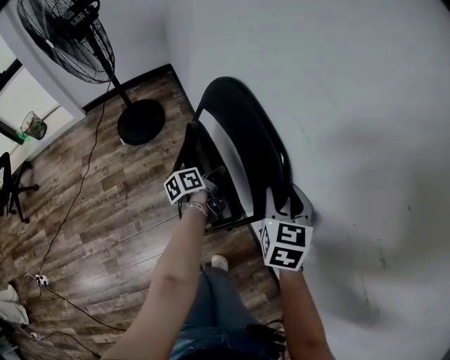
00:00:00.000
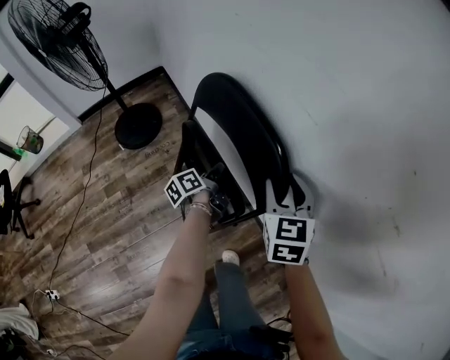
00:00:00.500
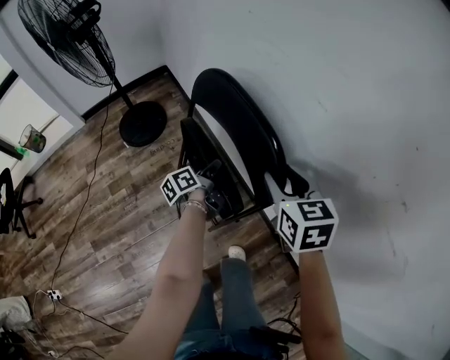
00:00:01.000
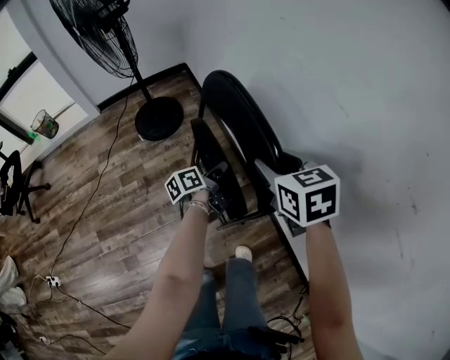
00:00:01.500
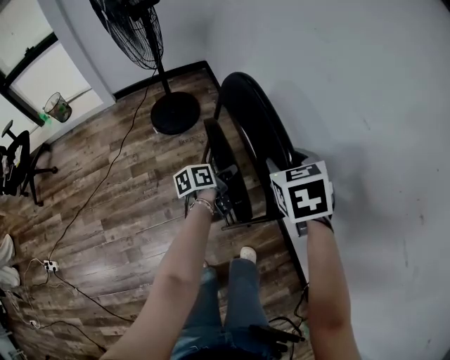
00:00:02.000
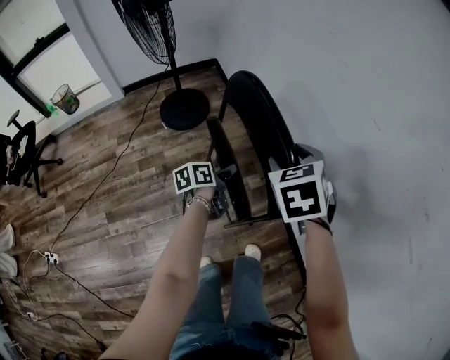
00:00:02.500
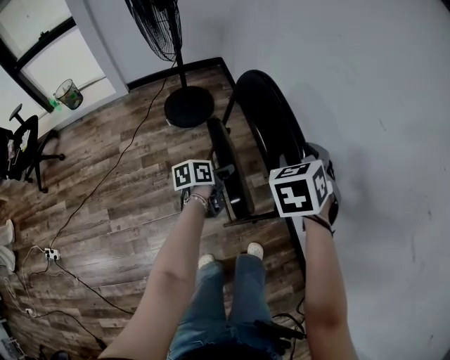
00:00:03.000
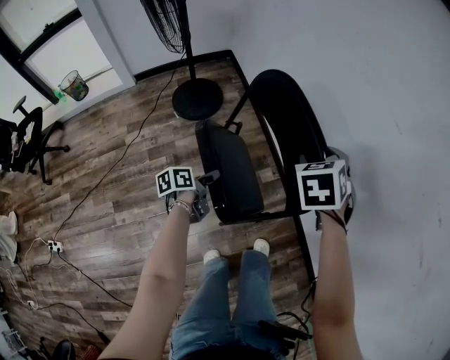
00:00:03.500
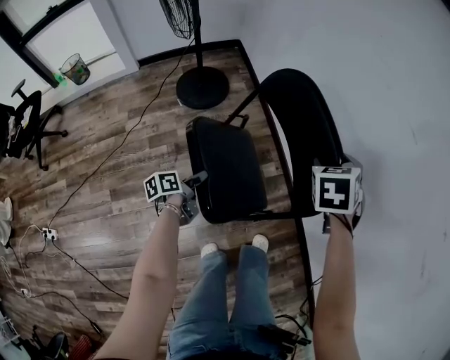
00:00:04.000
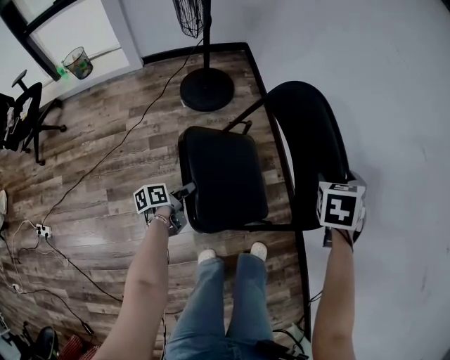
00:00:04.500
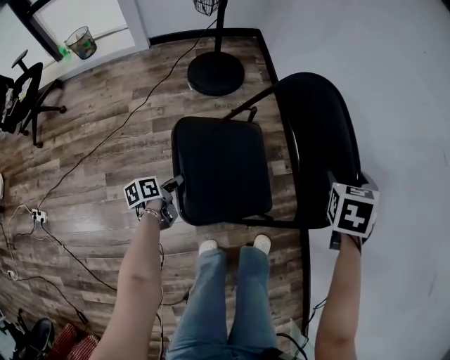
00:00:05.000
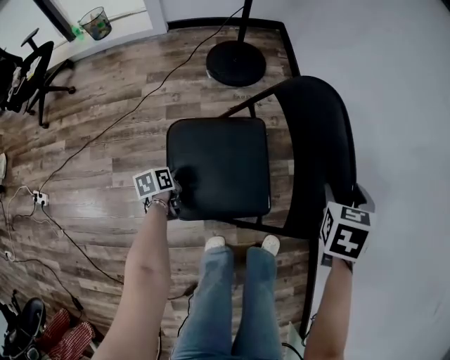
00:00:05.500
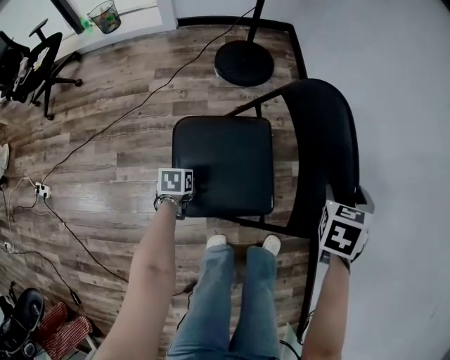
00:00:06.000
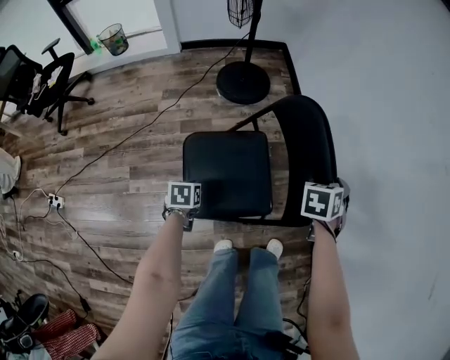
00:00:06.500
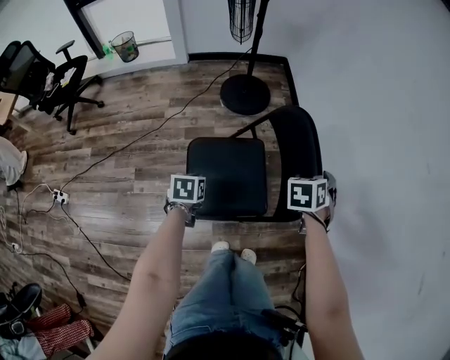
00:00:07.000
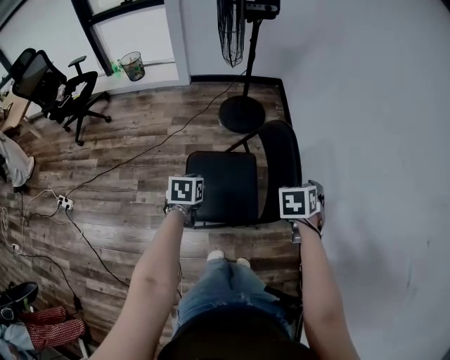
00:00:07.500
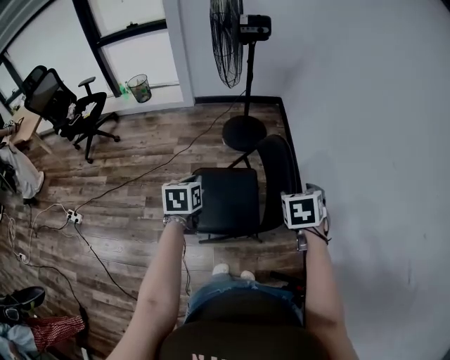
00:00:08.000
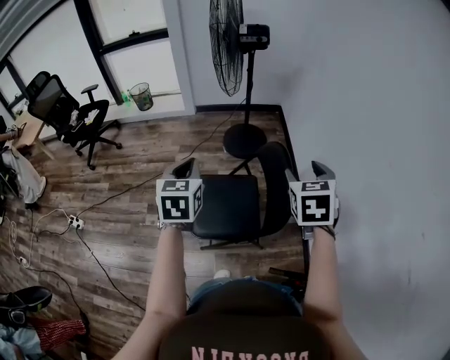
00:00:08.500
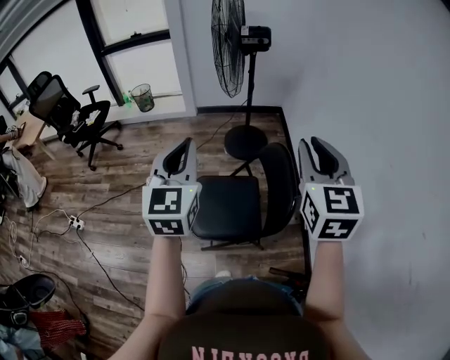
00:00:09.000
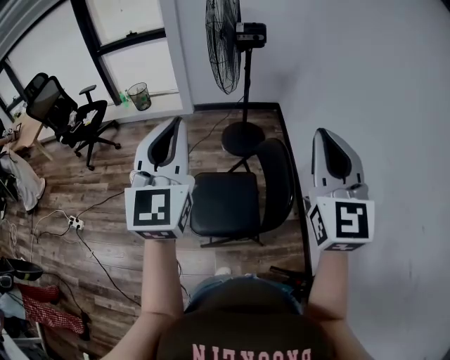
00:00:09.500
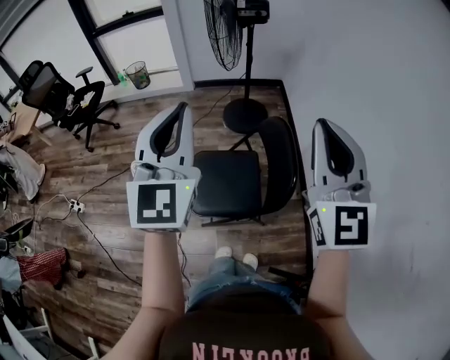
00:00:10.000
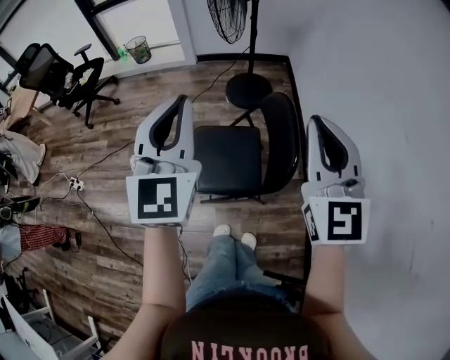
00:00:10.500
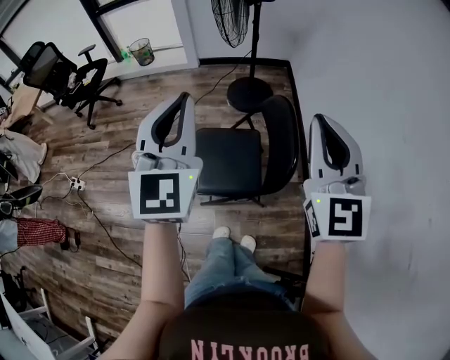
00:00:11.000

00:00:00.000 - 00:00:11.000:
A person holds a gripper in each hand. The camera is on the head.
00:00:00.000 - 00:00:02.000: The right gripper is displaced to the left by approximately 20 cm, and rotates roughly 30 degrees. The left gripper shifts approximately 20 cm to the left and backward.
00:00:02.000 - 00:00:03.500: The left gripper is displaced to the left and backward by some 20 cm.
00:00:03.500 - 00:00:05.500: The right gripper travels downward, backward and to the left by about 15 cm; the left gripper goes approximately 35 cm downward, to the left and backward, and changes its angle by some 30 degrees.
00:00:05.500 - 00:00:07.500: The left gripper travels upward by approximately 30 cm, and swivels approximately 30 degrees; the right gripper goes about 10 cm upward.
00:00:07.500 - 00:00:09.000: Both grippers travel together upward, about 35 cm. The left gripper points its fingers roughly 50 degrees further upward, while the right gripper angles its fingers upward, by some 50 degrees, and closes its fingers.
00:00:09.000 - 00:00:11.000: The right gripper ends up approximately 5 cm from where it was. Meanwhile the left gripper moves roughly 5 cm.

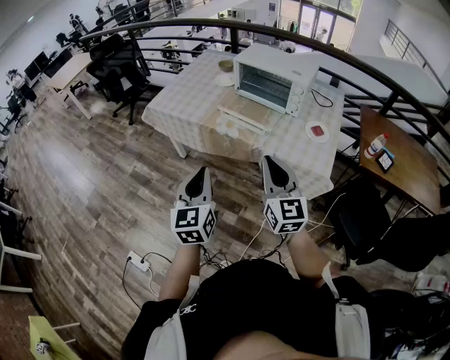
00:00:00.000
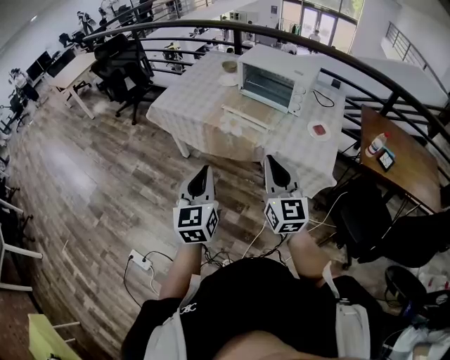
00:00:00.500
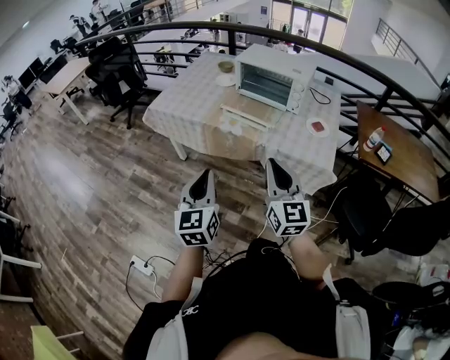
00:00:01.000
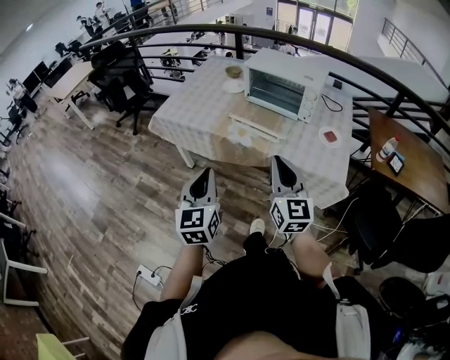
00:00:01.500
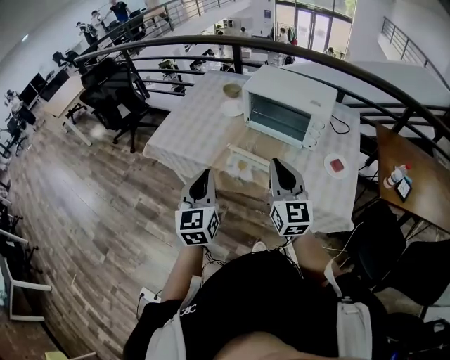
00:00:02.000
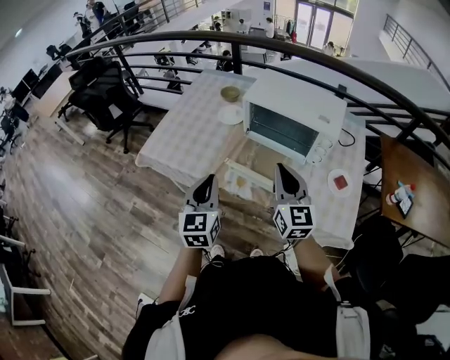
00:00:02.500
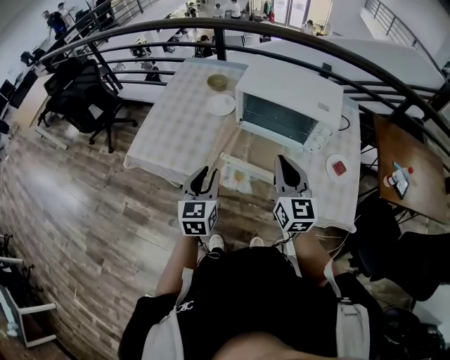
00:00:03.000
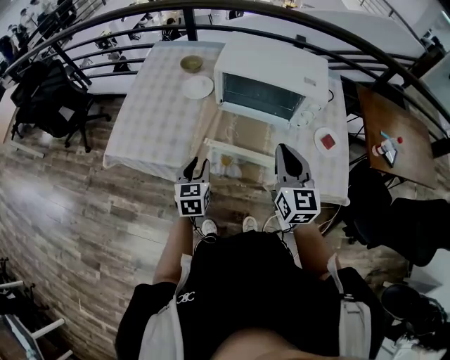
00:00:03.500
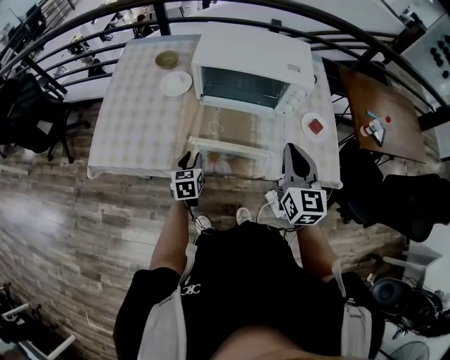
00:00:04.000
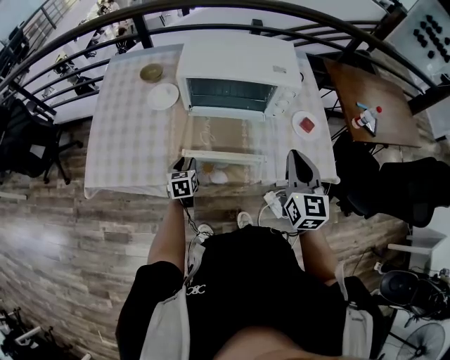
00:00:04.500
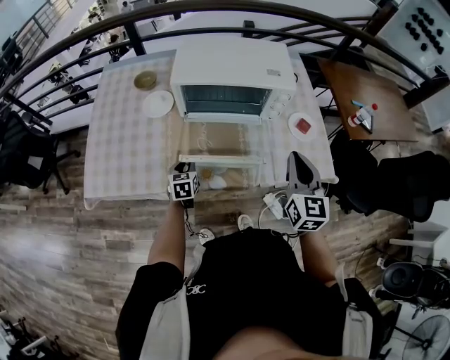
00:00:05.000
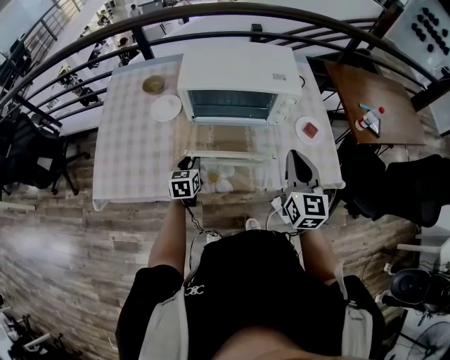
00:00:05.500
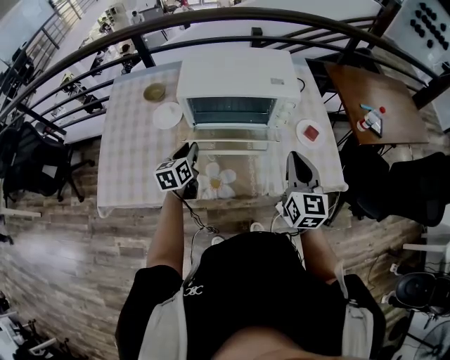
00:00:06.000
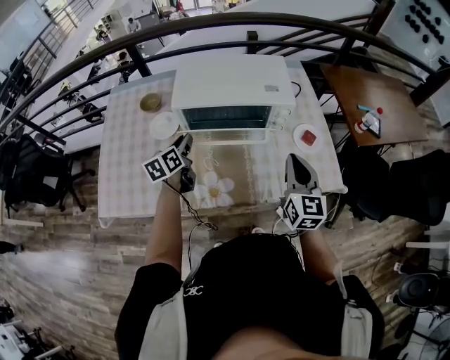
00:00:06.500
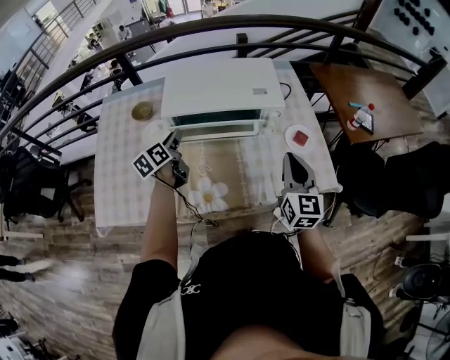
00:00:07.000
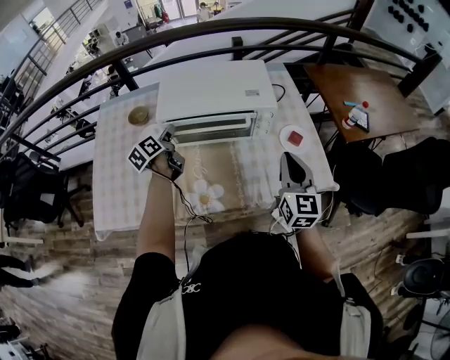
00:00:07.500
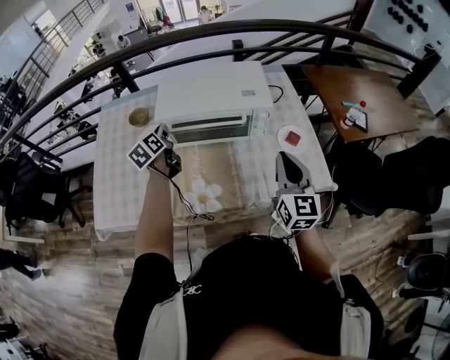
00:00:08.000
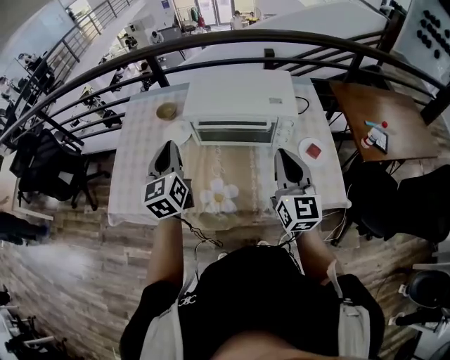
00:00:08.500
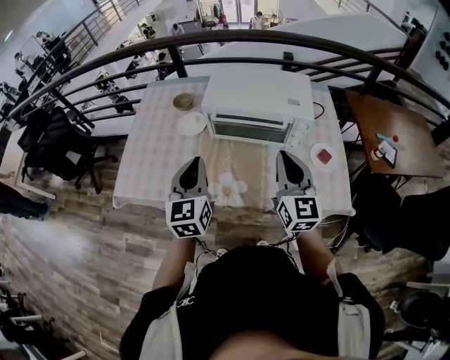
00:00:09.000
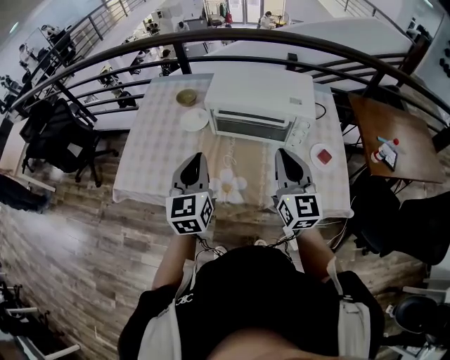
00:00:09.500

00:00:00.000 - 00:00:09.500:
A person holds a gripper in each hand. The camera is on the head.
00:00:00.000 - 00:00:02.000: The two grippers go roughly 25 cm forward.
00:00:02.000 - 00:00:04.000: The right gripper is displaced forward and downward by some 15 cm, and changes its angle by some 30 degrees; the left gripper heads downward and forward, covering approximately 40 cm, points its fingers some 30 degrees further downward, and opens its fingers.
00:00:04.000 - 00:00:05.500: The left gripper goes approximately 10 cm forward.
00:00:05.500 - 00:00:07.500: The right gripper ends up about 5 cm from where it was. The left gripper shifts approximately 20 cm forward and upward, and changes its angle by some 40 degrees.
00:00:07.500 - 00:00:09.500: The right gripper moves to the left and upward, some 15 cm, and swivels about 20 degrees. The left gripper travels backward and upward by some 30 cm, rotates around the line of its fingers by approximately 40 degrees, clockwise from behind, and closes.

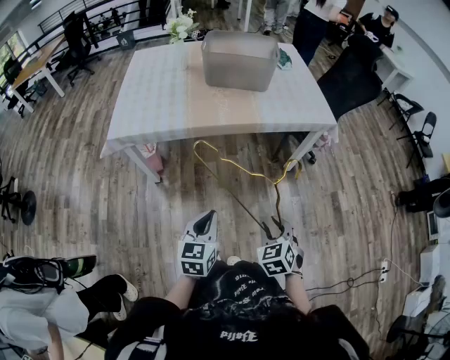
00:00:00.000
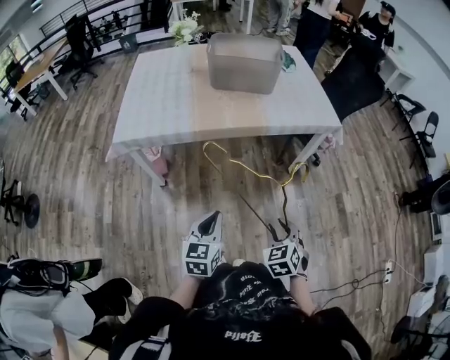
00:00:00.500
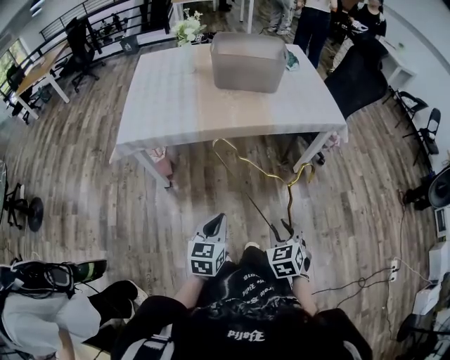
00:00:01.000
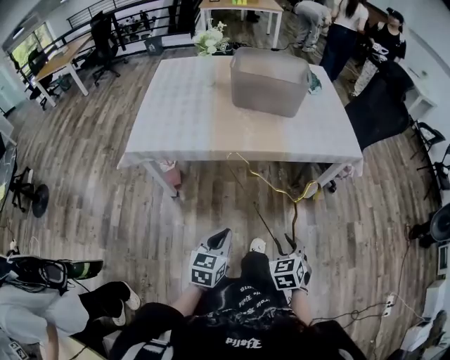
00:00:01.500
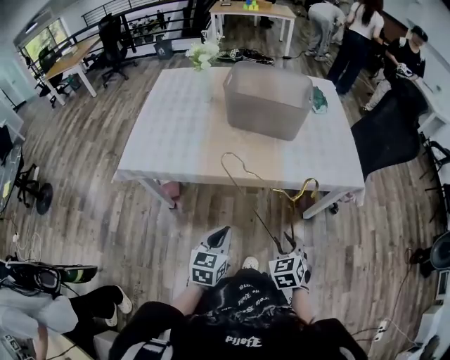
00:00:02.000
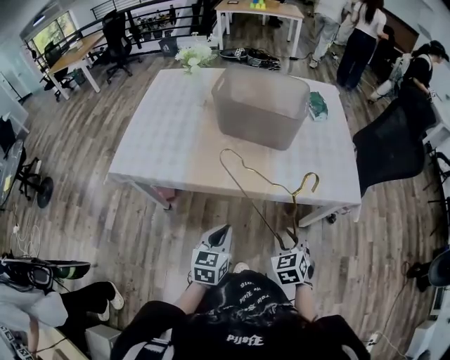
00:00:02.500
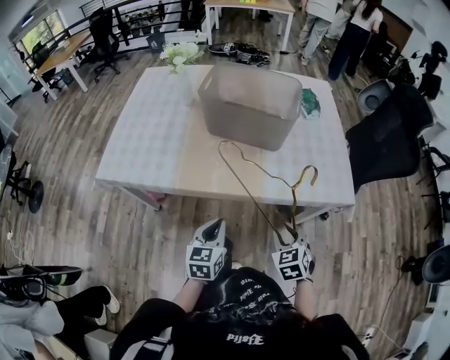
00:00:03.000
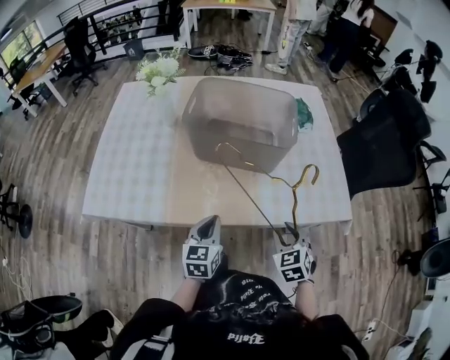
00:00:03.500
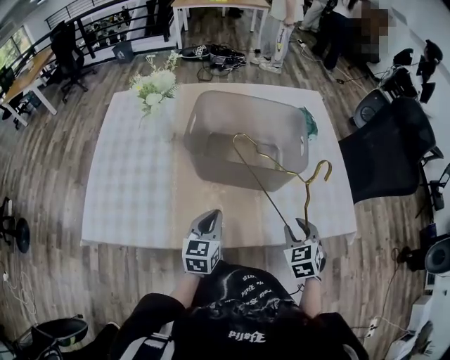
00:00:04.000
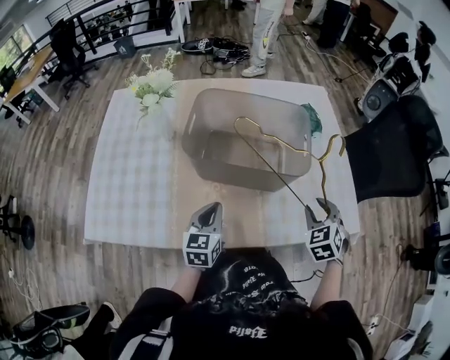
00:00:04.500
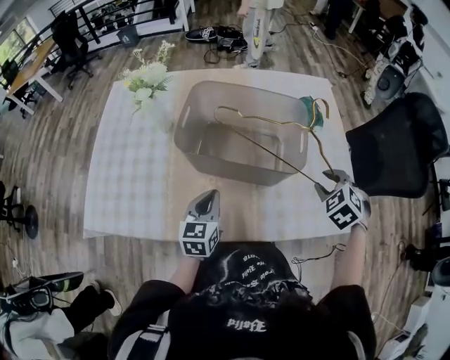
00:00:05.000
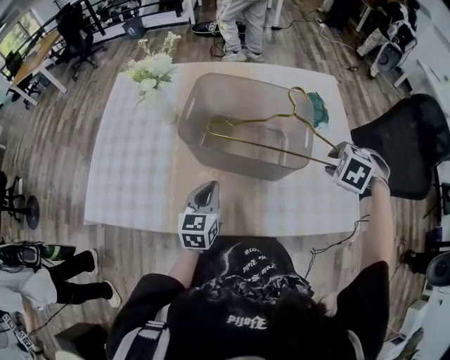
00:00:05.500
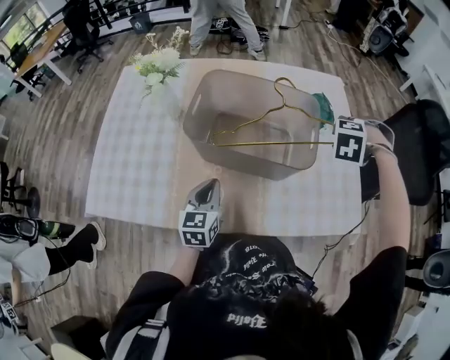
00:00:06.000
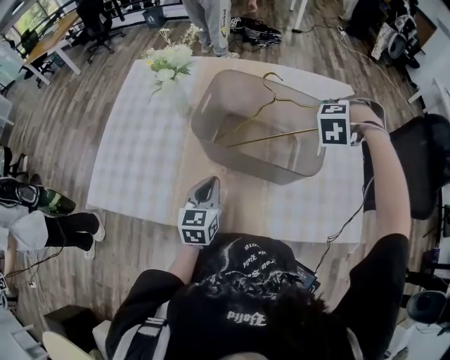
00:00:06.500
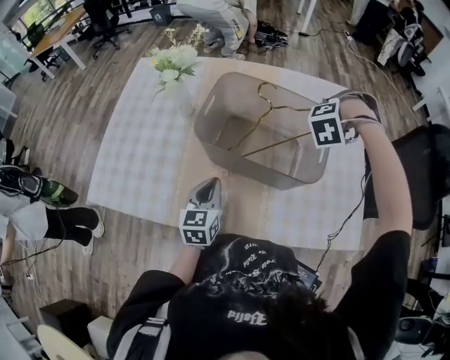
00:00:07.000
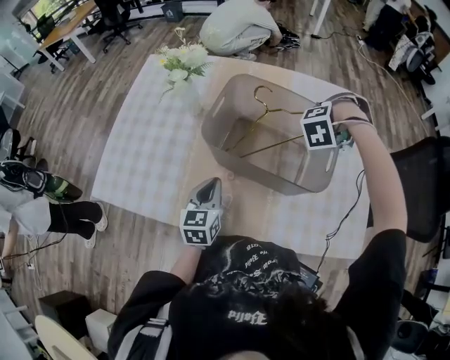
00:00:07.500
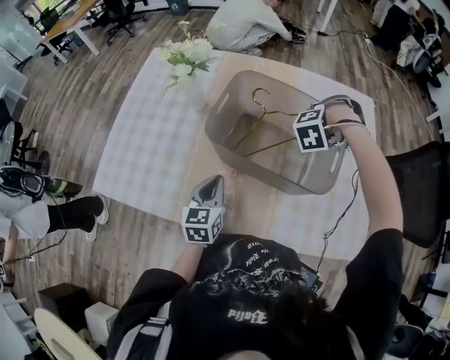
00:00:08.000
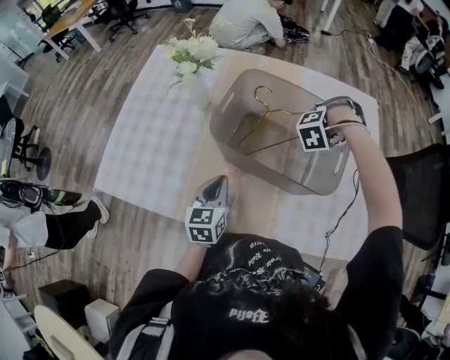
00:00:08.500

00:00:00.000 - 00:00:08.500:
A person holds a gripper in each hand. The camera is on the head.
00:00:00.000 - 00:00:02.000: Both grippers move forward, about 25 cm.
00:00:02.000 - 00:00:04.000: The grippers both shift forward by approximately 20 cm.
00:00:04.000 - 00:00:06.500: The right gripper shifts by some 30 cm, and rotates around the line of its fingers by some 70 degrees, counterclockwise from behind. Meanwhile the left gripper ends up roughly 5 cm from where it was.
00:00:06.500 - 00:00:08.500: The right gripper goes approximately 10 cm to the left and downward.
